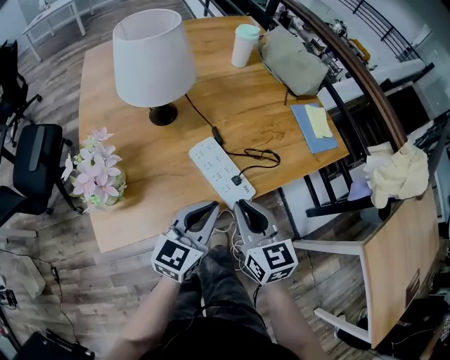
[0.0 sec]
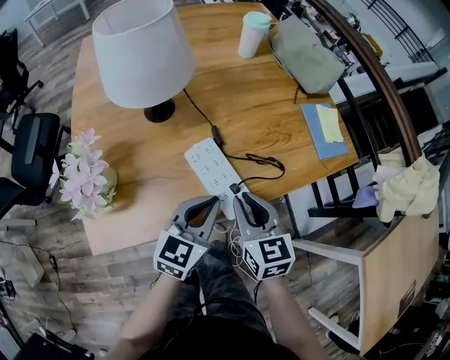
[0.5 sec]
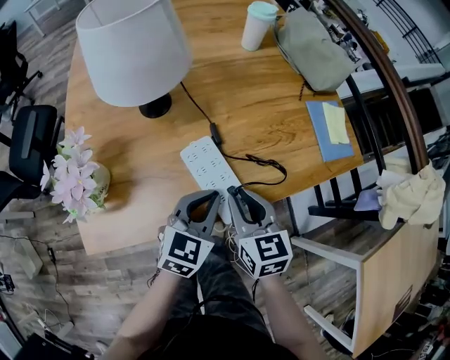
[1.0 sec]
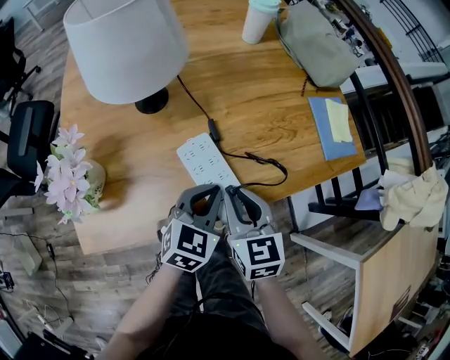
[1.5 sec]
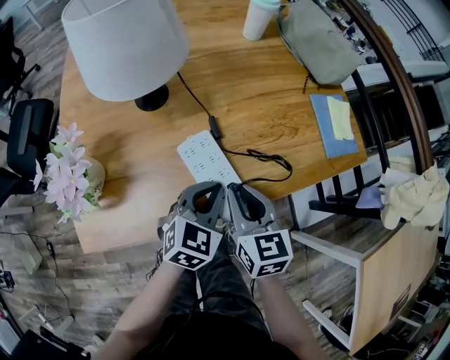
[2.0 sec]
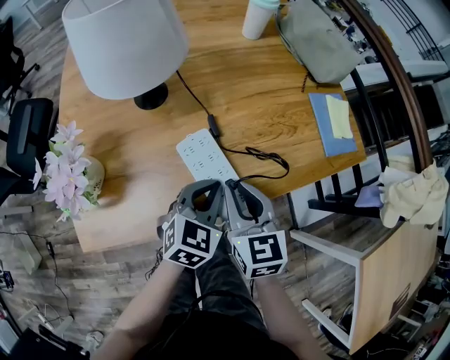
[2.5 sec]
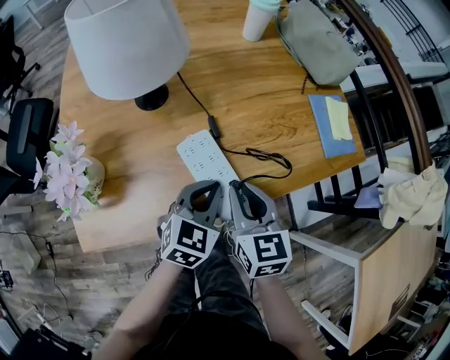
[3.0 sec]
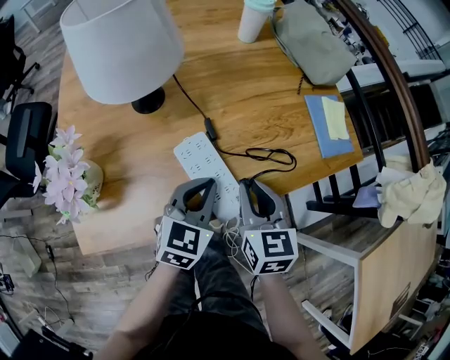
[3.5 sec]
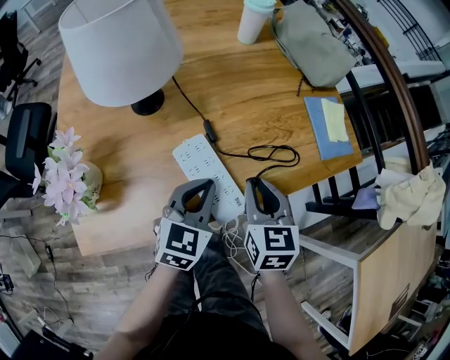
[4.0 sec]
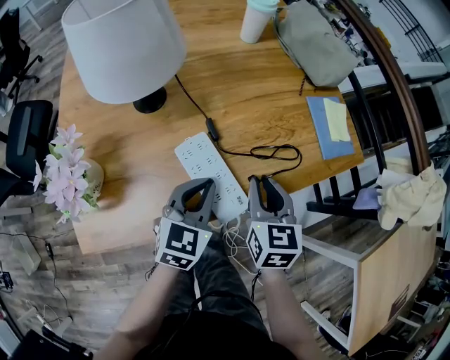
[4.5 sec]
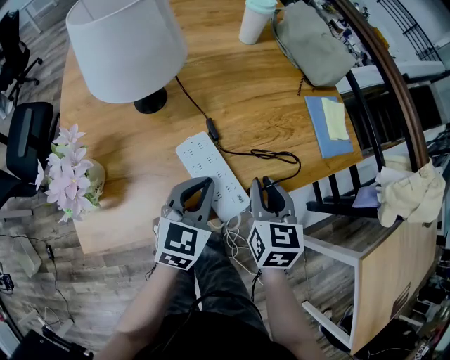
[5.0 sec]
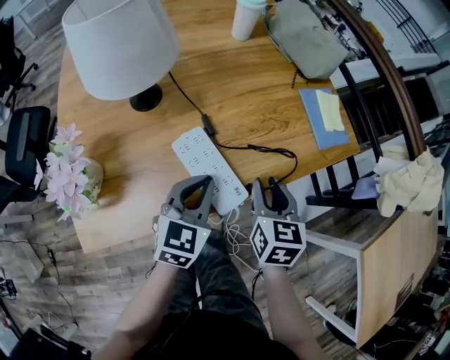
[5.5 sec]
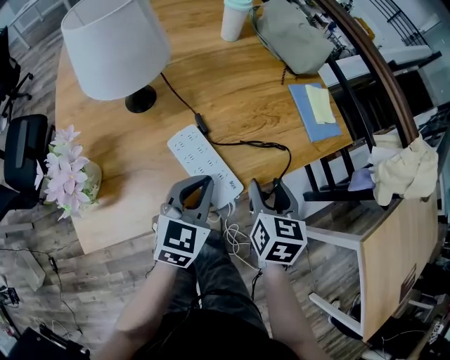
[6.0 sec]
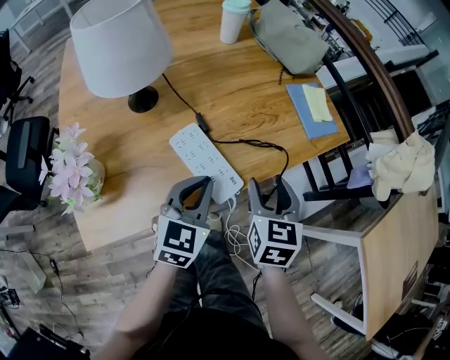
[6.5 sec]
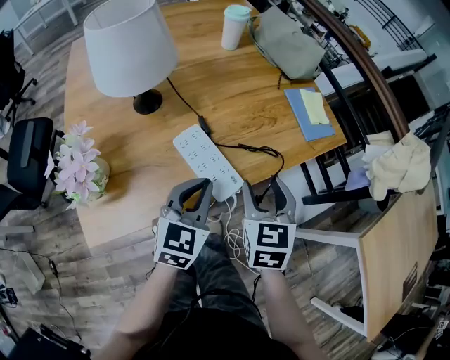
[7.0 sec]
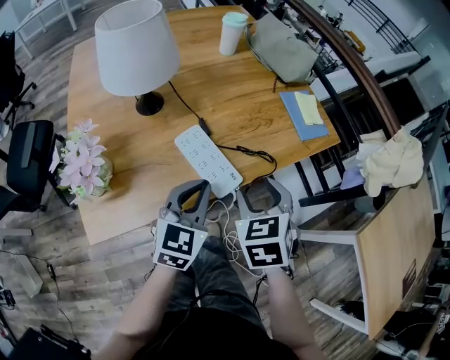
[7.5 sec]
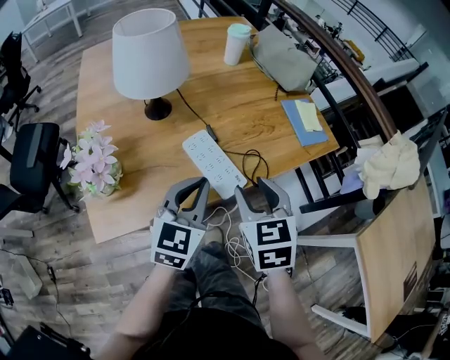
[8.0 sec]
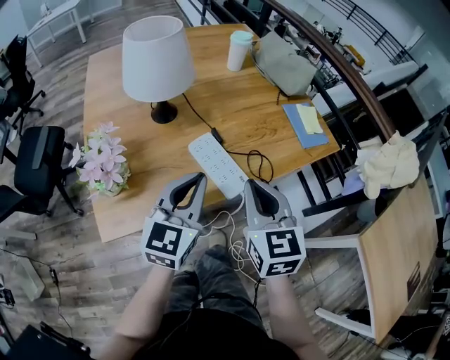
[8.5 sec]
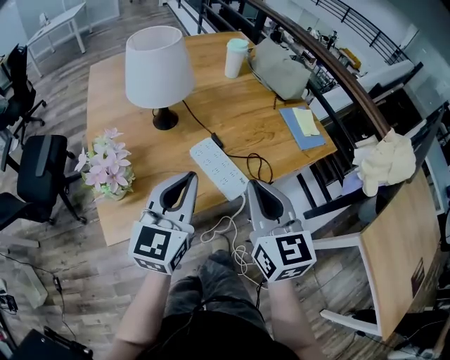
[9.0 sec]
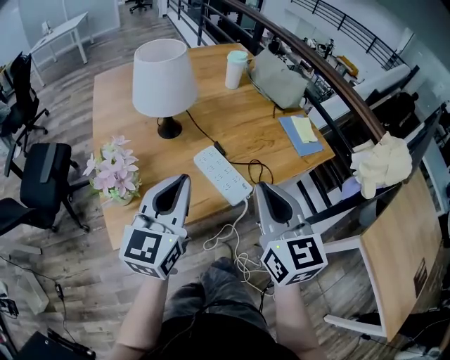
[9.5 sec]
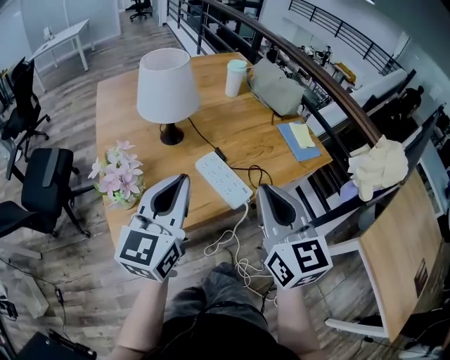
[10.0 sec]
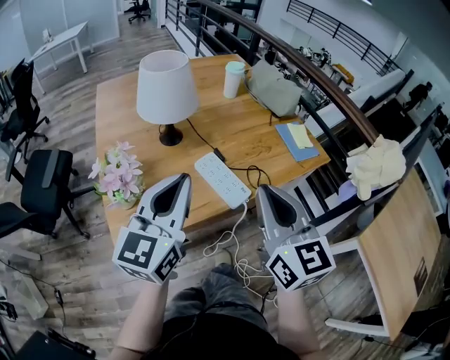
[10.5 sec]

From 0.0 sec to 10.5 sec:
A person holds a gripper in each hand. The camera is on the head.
From 0.0 sec to 2.0 sec: The two grippers go approximately 10 cm forward and downward. The left gripper swivels approximately 30 degrees.
From 2.0 sec to 4.0 sec: The right gripper travels to the right by about 5 cm.
From 4.0 sec to 6.5 sec: The right gripper shifts by about 5 cm, and opens. The left gripper changes place by approximately 5 cm.
From 6.5 sec to 8.5 sec: The left gripper moves upward and to the left, approximately 10 cm. The right gripper goes some 15 cm upward, to the left and backward, changes its angle by about 20 degrees, and closes up.
From 8.5 sec to 10.5 sec: The left gripper travels upward and to the left by approximately 15 cm, while the right gripper shifts about 15 cm upward and backward.

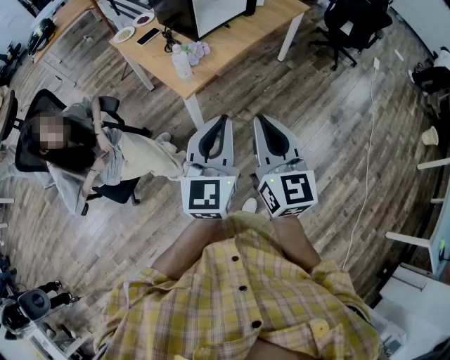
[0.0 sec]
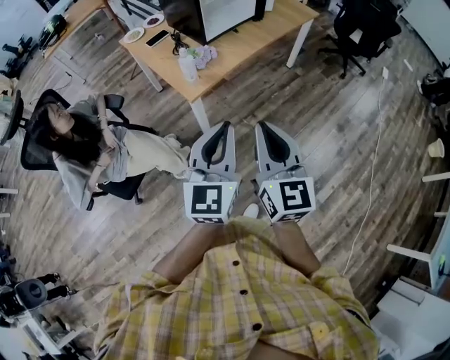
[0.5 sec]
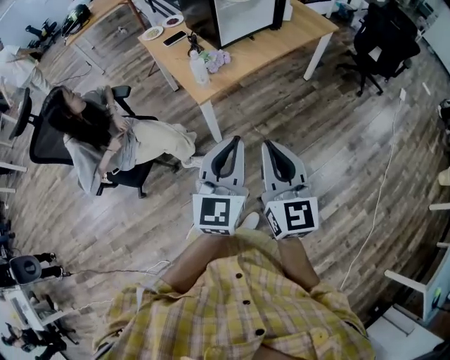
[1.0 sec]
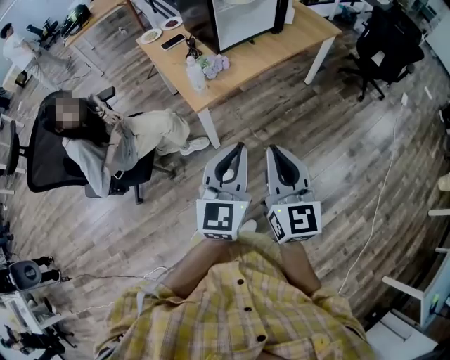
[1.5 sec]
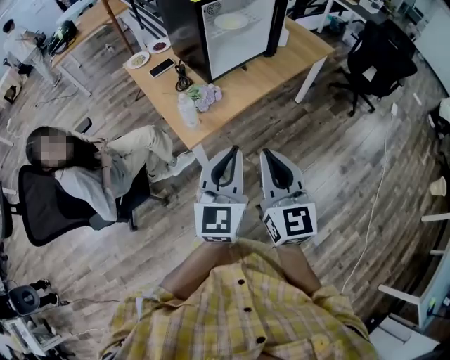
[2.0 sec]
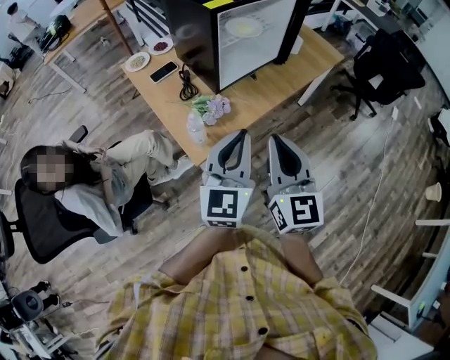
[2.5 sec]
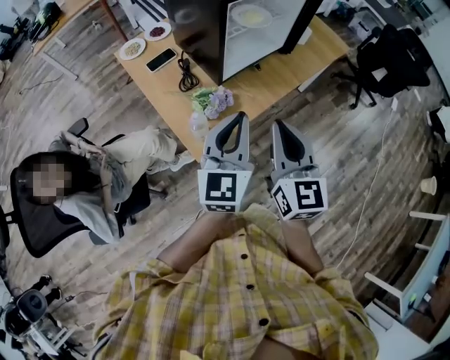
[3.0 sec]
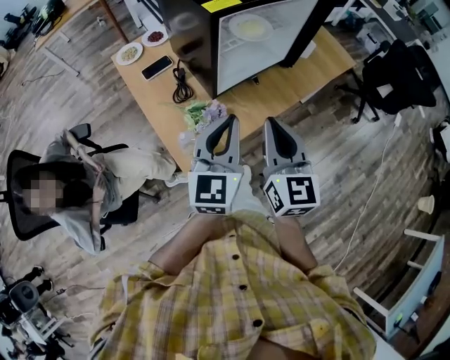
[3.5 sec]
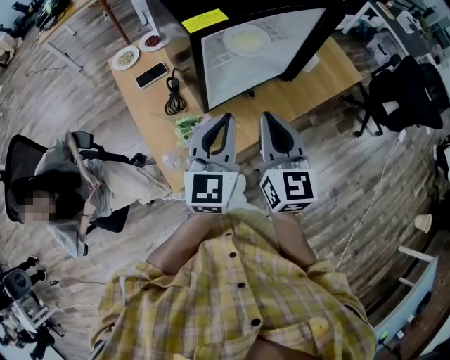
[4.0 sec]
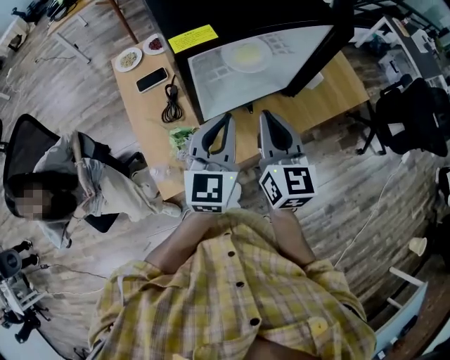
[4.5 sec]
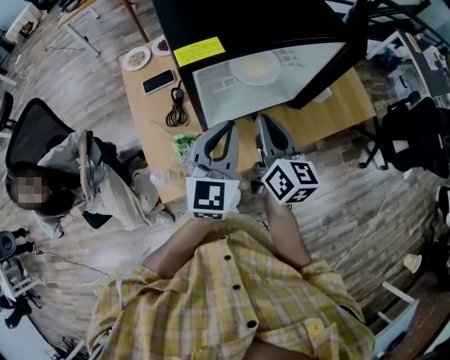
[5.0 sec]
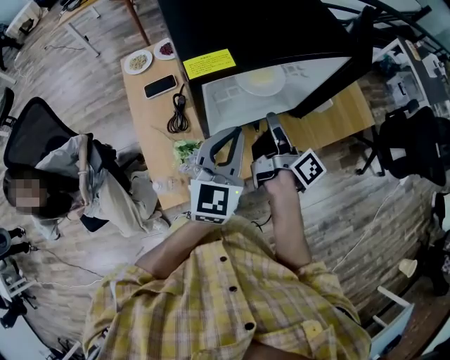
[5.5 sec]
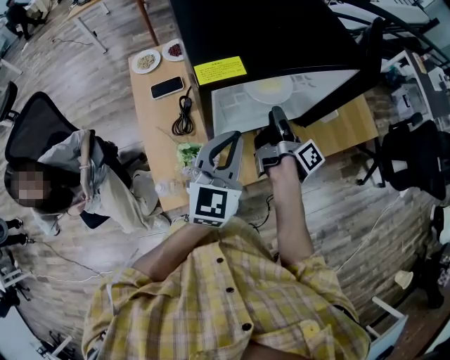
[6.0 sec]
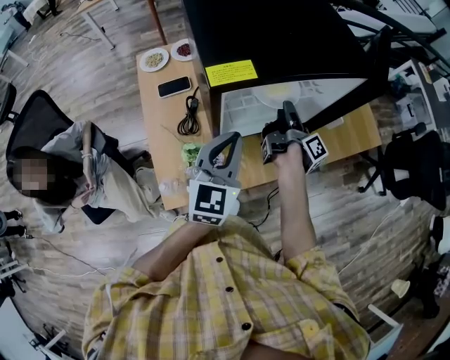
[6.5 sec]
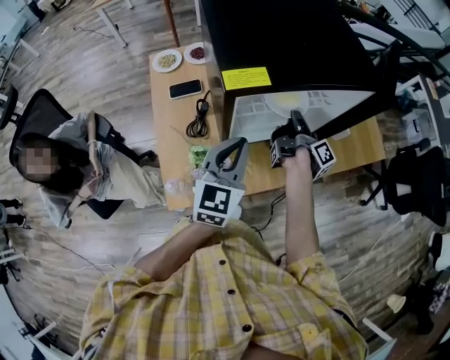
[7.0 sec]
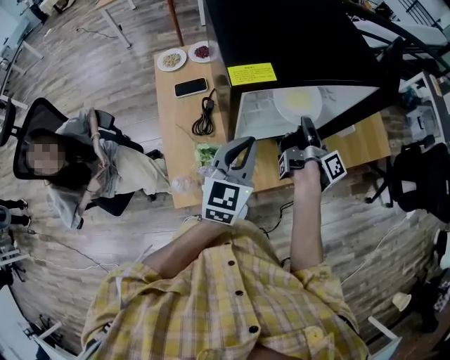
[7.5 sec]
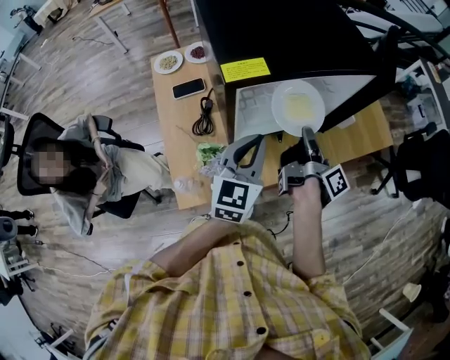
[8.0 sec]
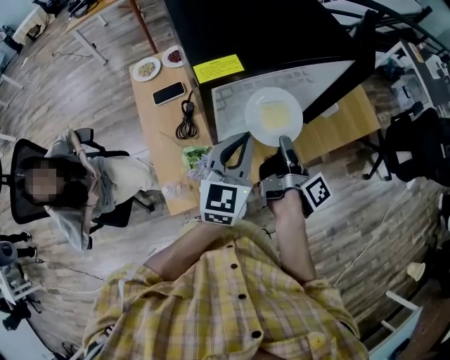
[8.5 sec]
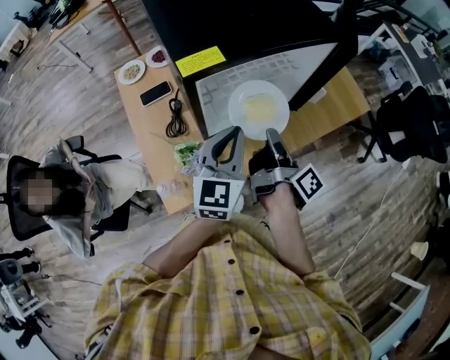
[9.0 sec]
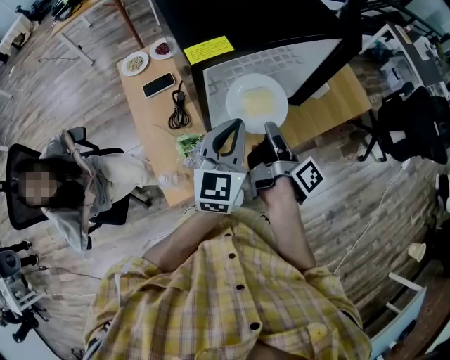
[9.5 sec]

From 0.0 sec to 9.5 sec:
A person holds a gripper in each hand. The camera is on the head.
From 0.0 sec to 2.0 sec: The grippers both shift forward by approximately 15 cm.
From 2.0 sec to 4.0 sec: Both grippers move forward, roughly 35 cm.
From 4.0 sec to 5.5 sec: The right gripper goes approximately 15 cm forward and downward, and rolls clockwise, seen from behind, by some 80 degrees, while the left gripper goes about 10 cm forward.
From 5.5 sec to 7.5 sec: The right gripper heads forward, covering roughly 5 cm, and opens, then closes again.
From 7.5 sec to 9.5 sec: The right gripper is displaced backward by approximately 10 cm.

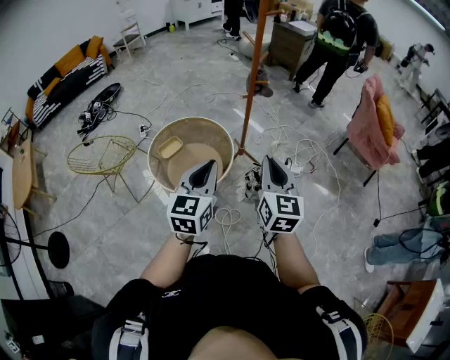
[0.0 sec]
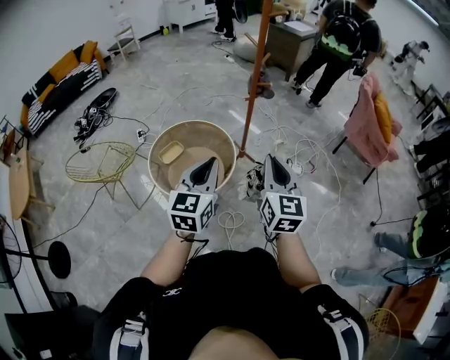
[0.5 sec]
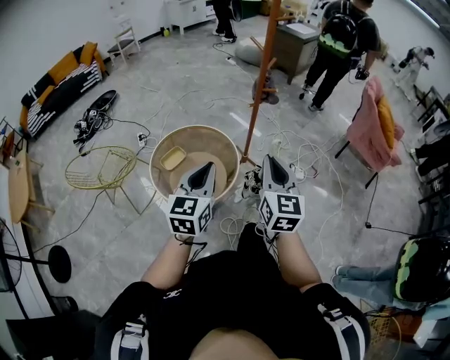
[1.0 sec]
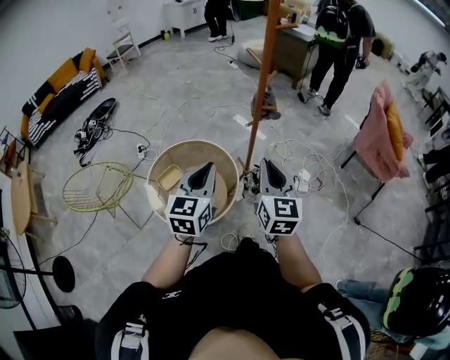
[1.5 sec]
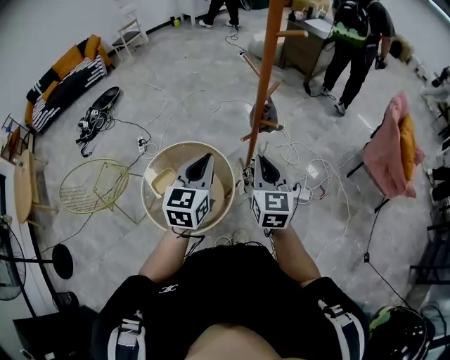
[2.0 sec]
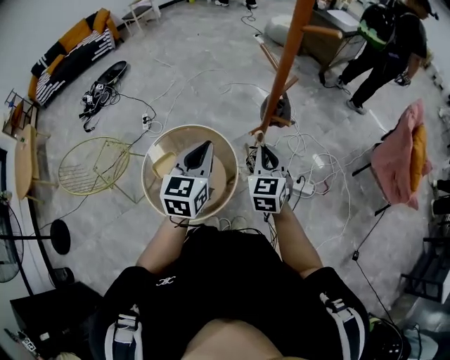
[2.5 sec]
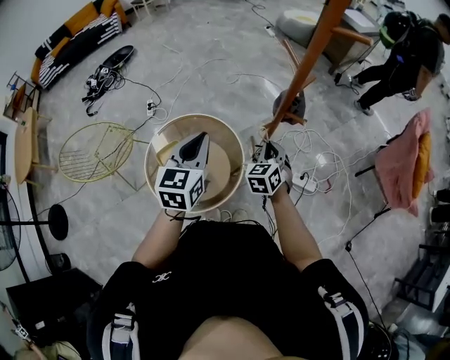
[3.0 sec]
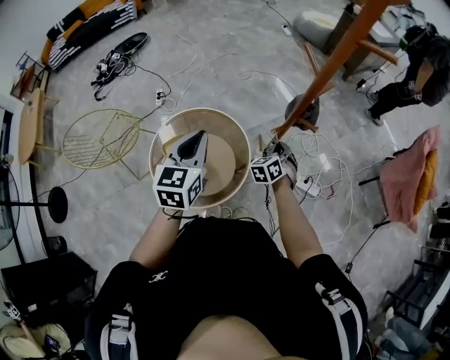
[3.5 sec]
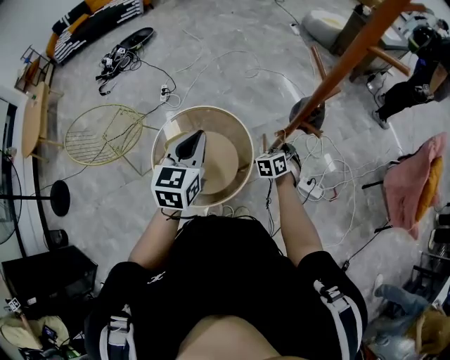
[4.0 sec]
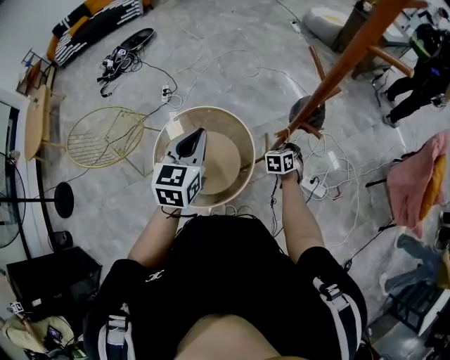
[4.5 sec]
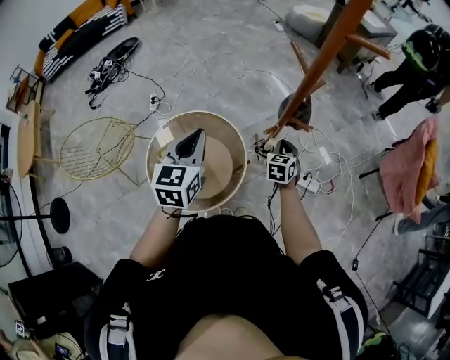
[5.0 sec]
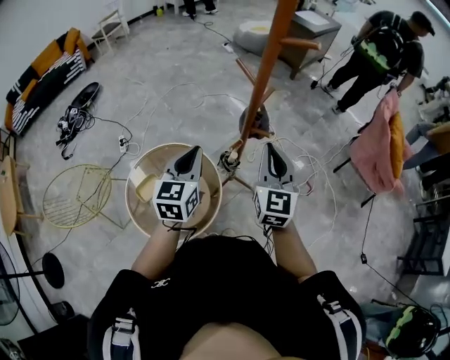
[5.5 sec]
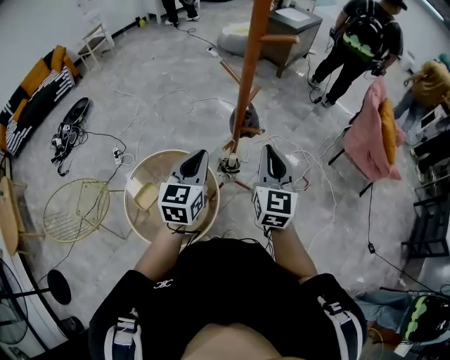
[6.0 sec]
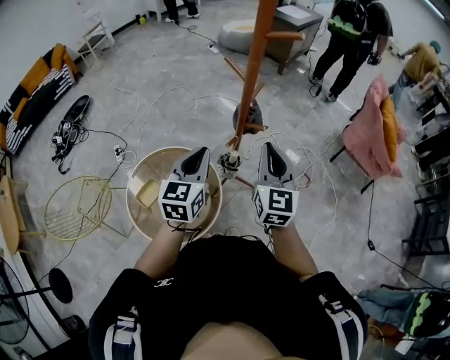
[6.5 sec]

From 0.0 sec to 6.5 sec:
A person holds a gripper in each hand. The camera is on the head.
From 0.0 sec to 2.0 sec: The two grippers go approximately 40 cm forward.
From 2.0 sec to 4.5 sec: The left gripper travels to the left and forward by approximately 15 cm. The right gripper moves downward and forward, some 40 cm, and tilts its fingers some 40 degrees downward.
From 4.5 sec to 6.5 sec: The right gripper goes some 40 cm upward and backward, and points its fingers approximately 50 degrees further upward. The left gripper travels to the right by approximately 15 cm, and rotates about 20 degrees.
